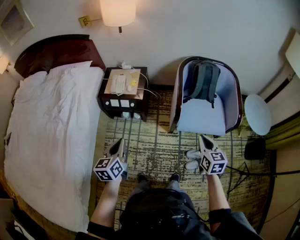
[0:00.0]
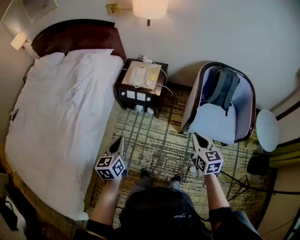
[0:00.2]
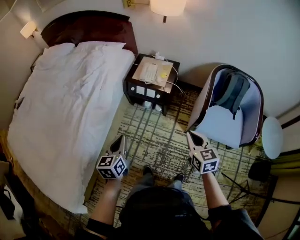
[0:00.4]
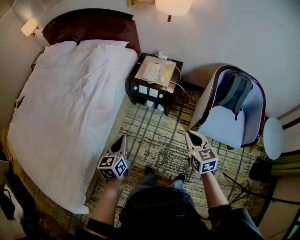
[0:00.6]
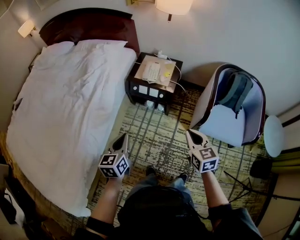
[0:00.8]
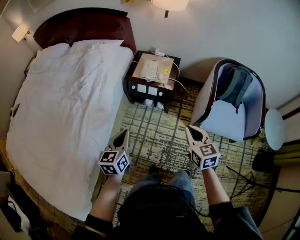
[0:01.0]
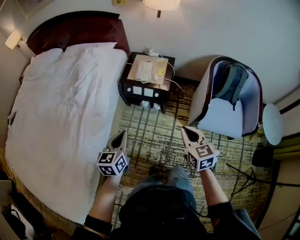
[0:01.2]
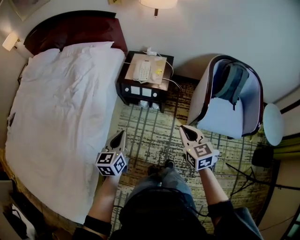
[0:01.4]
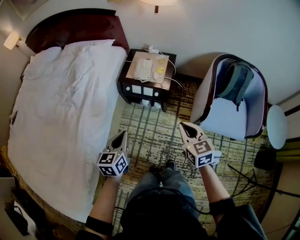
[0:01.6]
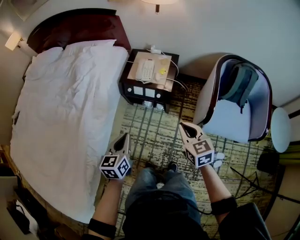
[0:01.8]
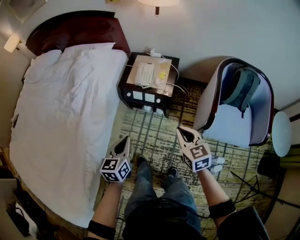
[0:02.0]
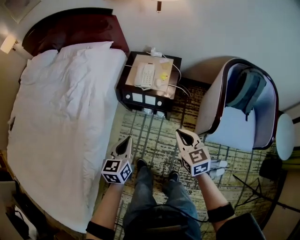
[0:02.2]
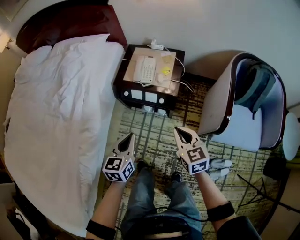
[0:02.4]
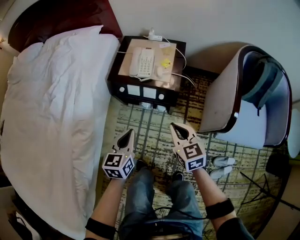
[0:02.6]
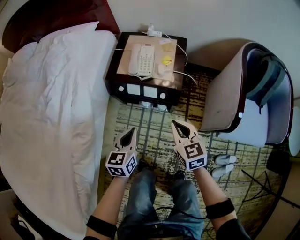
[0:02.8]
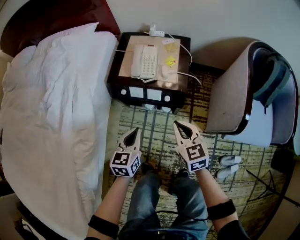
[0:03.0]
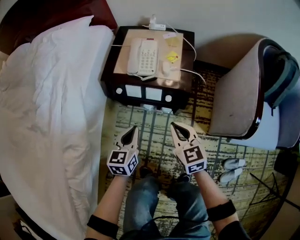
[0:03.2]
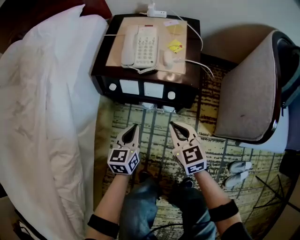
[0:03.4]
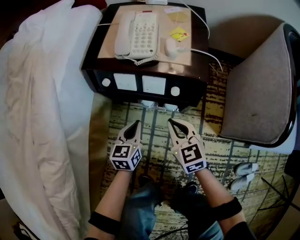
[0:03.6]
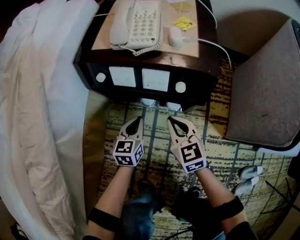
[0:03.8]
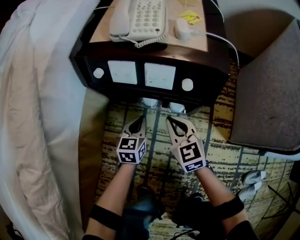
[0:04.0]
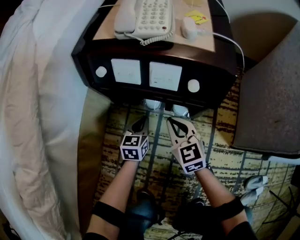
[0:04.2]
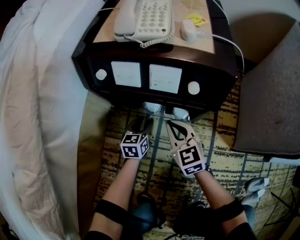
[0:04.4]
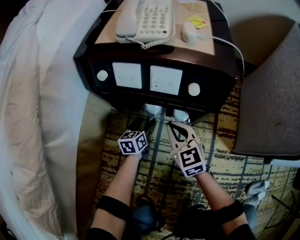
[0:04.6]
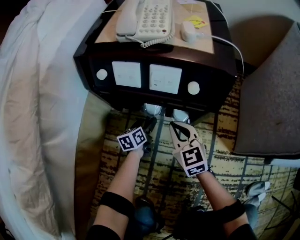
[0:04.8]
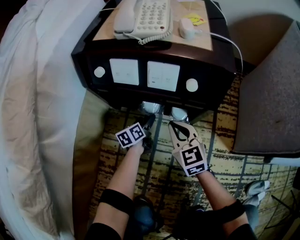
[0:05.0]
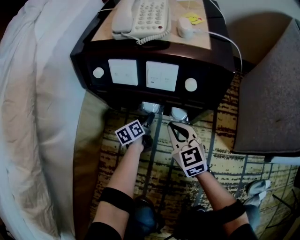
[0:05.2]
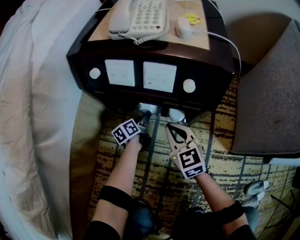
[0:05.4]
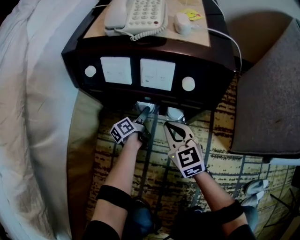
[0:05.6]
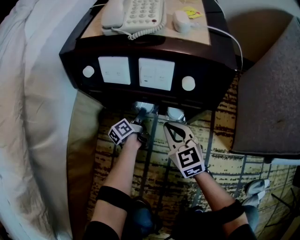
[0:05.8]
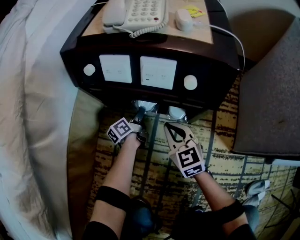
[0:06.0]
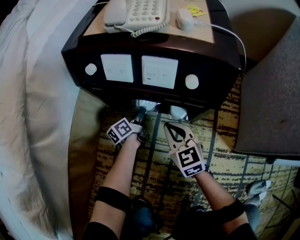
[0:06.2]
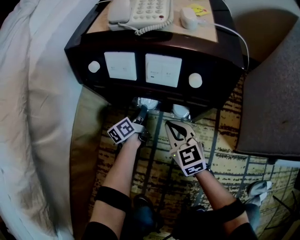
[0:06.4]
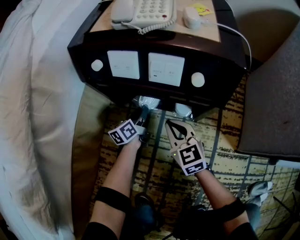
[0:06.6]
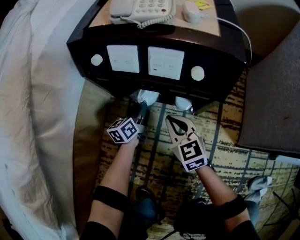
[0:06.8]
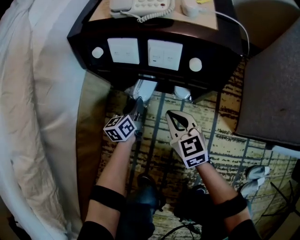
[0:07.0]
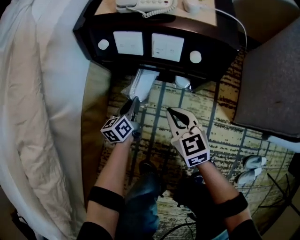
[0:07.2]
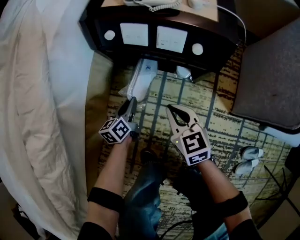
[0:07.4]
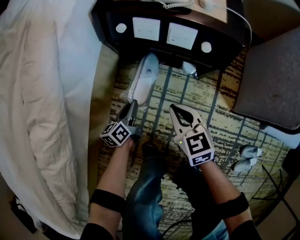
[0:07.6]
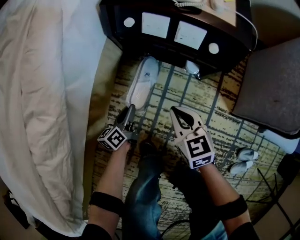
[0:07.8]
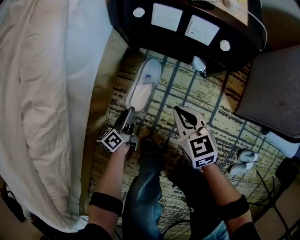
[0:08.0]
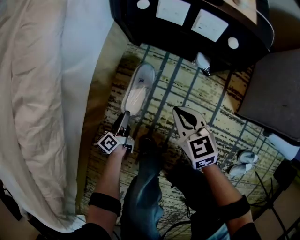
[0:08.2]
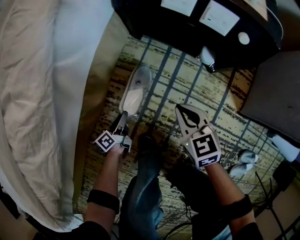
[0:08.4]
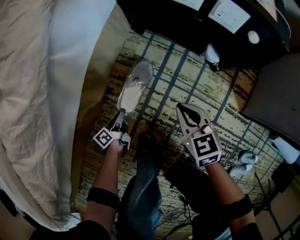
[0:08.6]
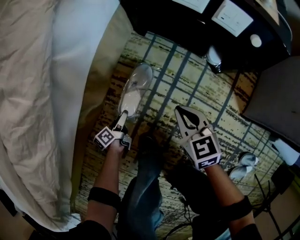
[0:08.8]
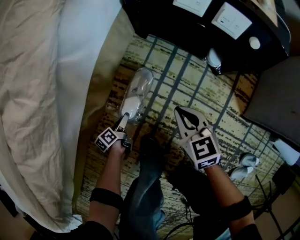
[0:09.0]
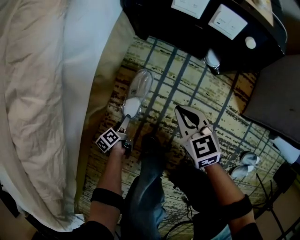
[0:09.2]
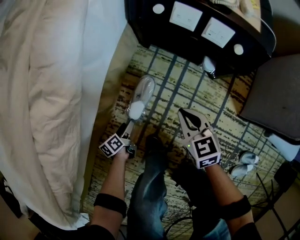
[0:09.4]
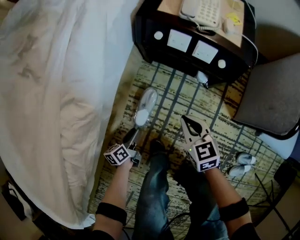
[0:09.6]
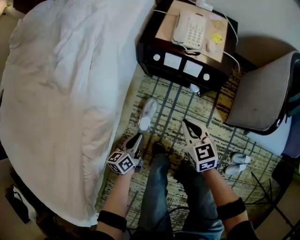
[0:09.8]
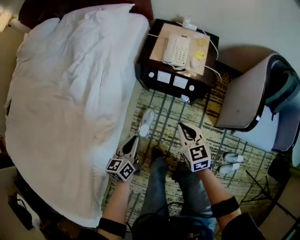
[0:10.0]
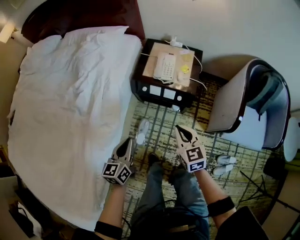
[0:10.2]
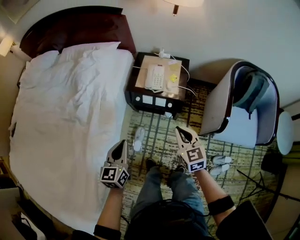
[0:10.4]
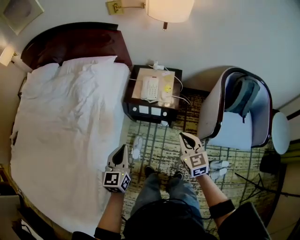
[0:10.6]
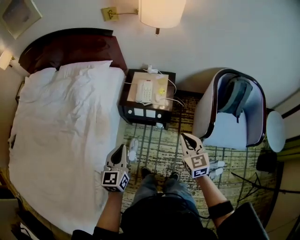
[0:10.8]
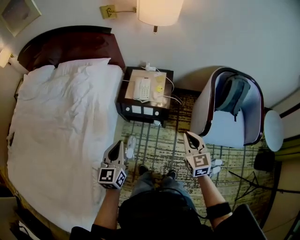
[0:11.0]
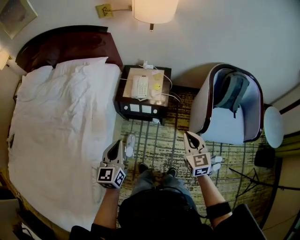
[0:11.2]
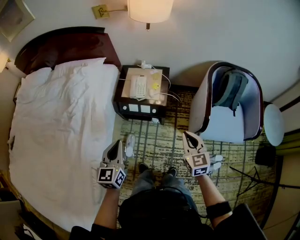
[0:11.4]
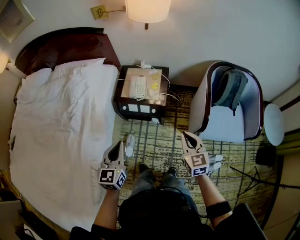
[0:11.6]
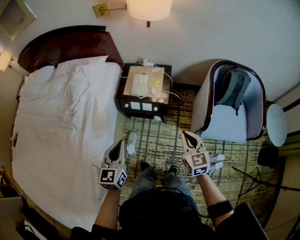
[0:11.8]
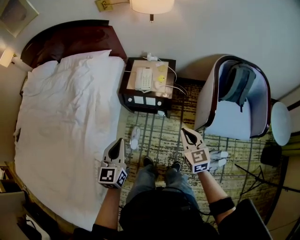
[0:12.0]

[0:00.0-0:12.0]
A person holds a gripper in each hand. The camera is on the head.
0:00.0 to 0:01.6: The right gripper travels to the left and forward by approximately 30 cm, and changes its angle by approximately 20 degrees. The left gripper heads to the left, forward and downward, covering approximately 15 cm.
0:01.6 to 0:03.0: Both grippers travel together downward and forward, about 35 cm.
0:03.0 to 0:04.4: Both grippers move downward, roughly 40 cm.
0:04.4 to 0:06.0: The left gripper moves downward and forward, approximately 10 cm, and rolls counterclockwise, seen from behind, by approximately 50 degrees.
0:06.0 to 0:07.6: The left gripper shifts some 30 cm backward, upward and to the left, and changes its angle by approximately 20 degrees. The right gripper goes roughly 20 cm upward, backward and to the left.
0:07.6 to 0:09.0: The right gripper is displaced downward and to the left by roughly 10 cm. Meanwhile the left gripper travels downward, to the left and backward by about 30 cm, turns by about 40 degrees, and opens.
0:09.0 to 0:10.4: Both grippers travel together upward, about 70 cm. The right gripper rotates some 30 degrees; the left gripper rolls clockwise, seen from behind, by roughly 60 degrees, and closes its fingers.
0:10.4 to 0:12.0: The left gripper travels upward and to the right by approximately 15 cm, while the right gripper is displaced to the right, backward and upward by about 15 cm.

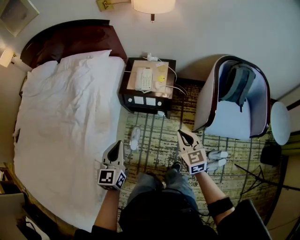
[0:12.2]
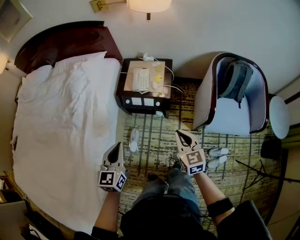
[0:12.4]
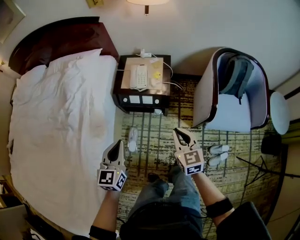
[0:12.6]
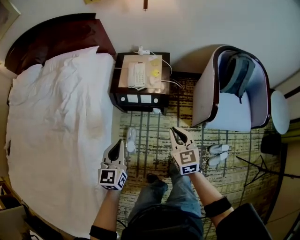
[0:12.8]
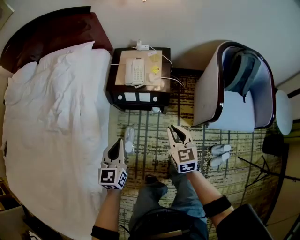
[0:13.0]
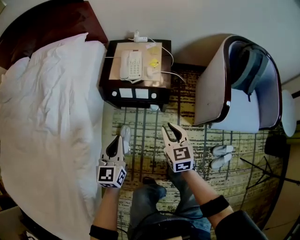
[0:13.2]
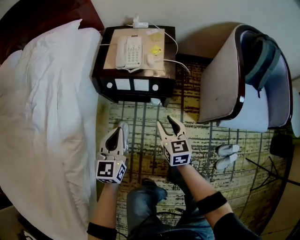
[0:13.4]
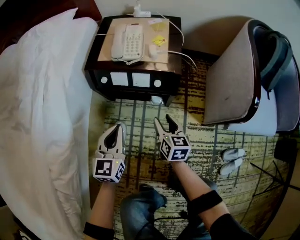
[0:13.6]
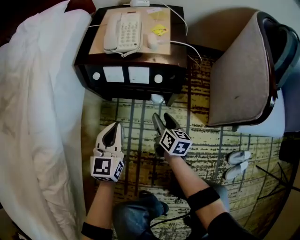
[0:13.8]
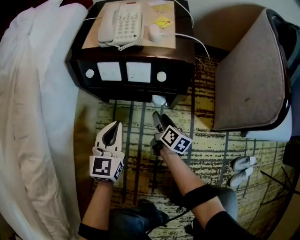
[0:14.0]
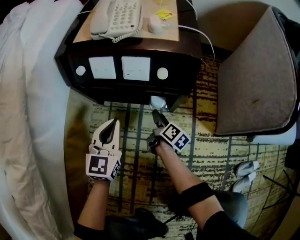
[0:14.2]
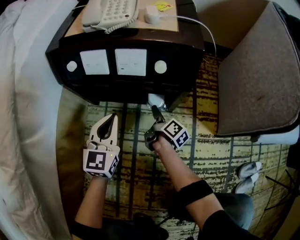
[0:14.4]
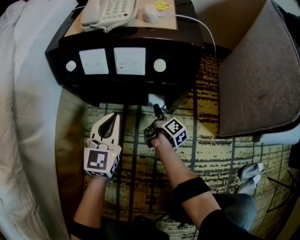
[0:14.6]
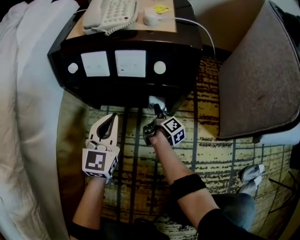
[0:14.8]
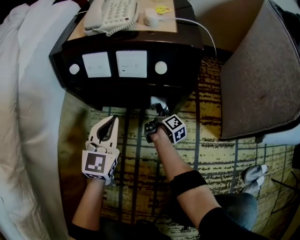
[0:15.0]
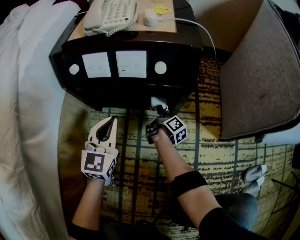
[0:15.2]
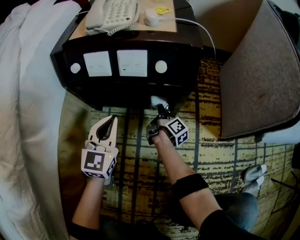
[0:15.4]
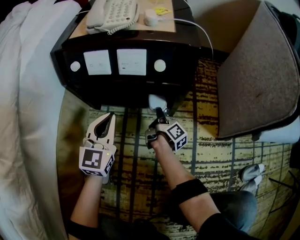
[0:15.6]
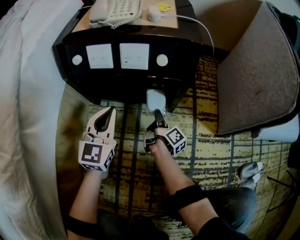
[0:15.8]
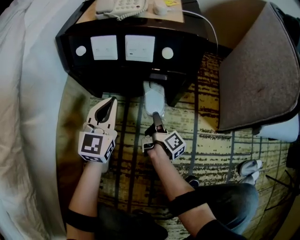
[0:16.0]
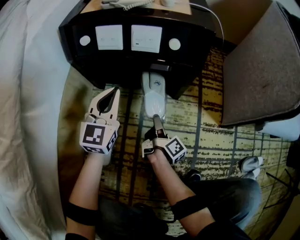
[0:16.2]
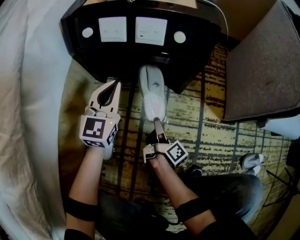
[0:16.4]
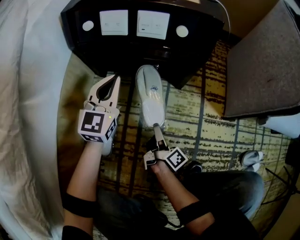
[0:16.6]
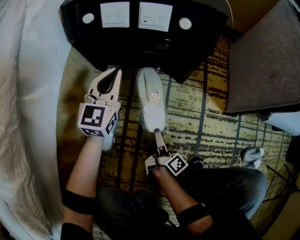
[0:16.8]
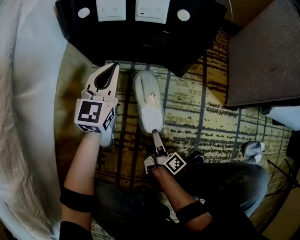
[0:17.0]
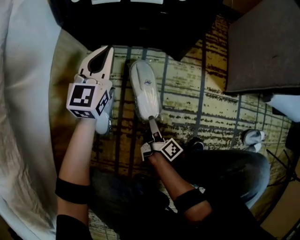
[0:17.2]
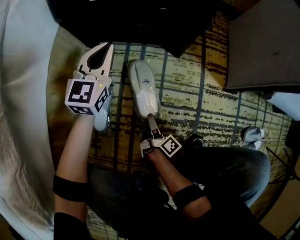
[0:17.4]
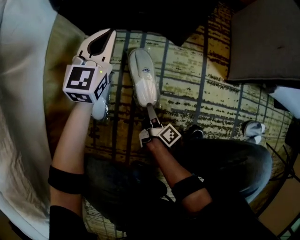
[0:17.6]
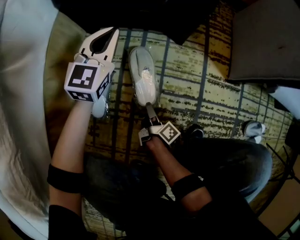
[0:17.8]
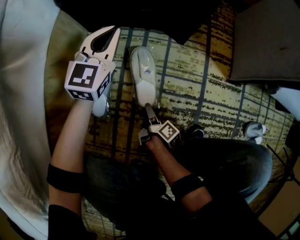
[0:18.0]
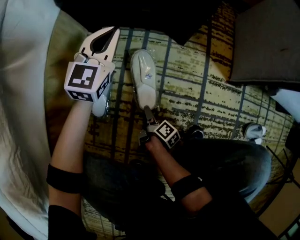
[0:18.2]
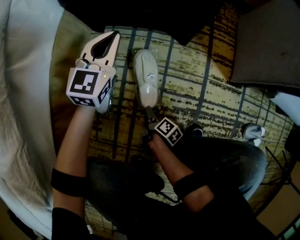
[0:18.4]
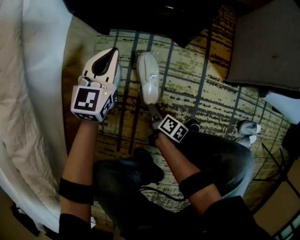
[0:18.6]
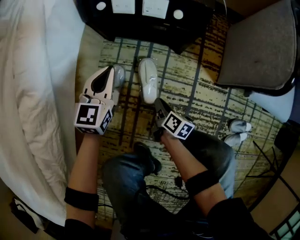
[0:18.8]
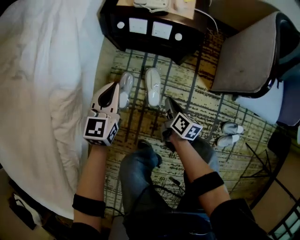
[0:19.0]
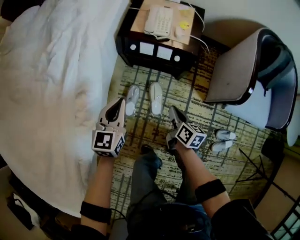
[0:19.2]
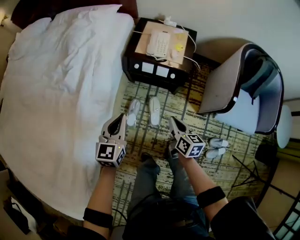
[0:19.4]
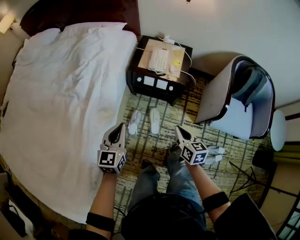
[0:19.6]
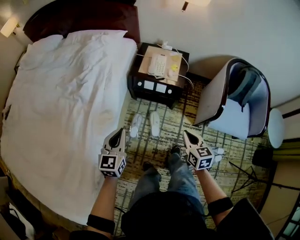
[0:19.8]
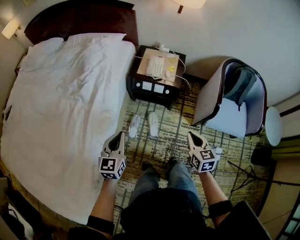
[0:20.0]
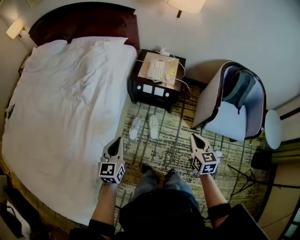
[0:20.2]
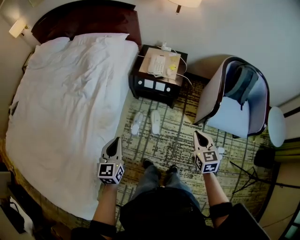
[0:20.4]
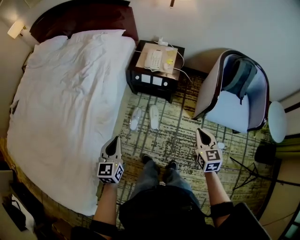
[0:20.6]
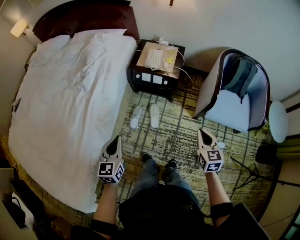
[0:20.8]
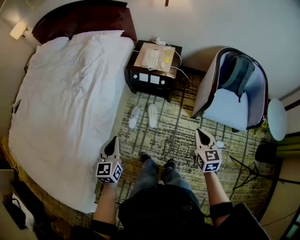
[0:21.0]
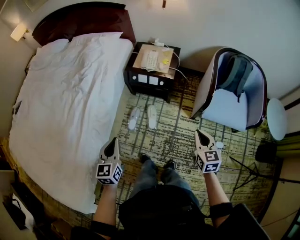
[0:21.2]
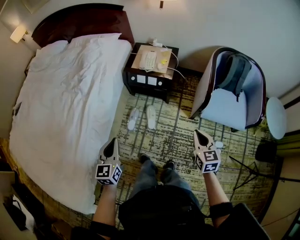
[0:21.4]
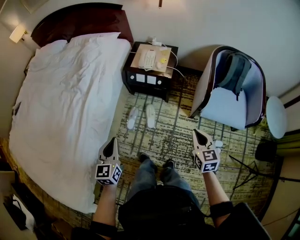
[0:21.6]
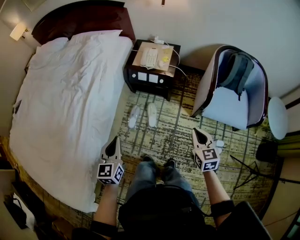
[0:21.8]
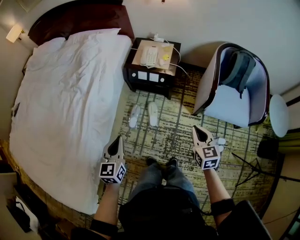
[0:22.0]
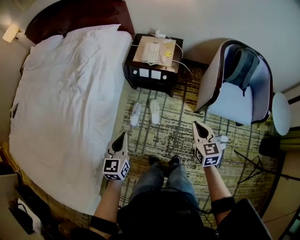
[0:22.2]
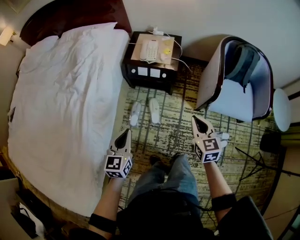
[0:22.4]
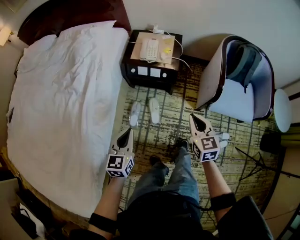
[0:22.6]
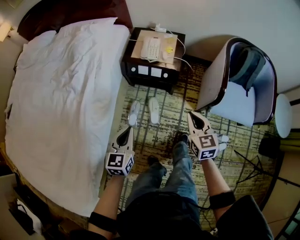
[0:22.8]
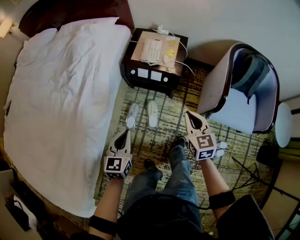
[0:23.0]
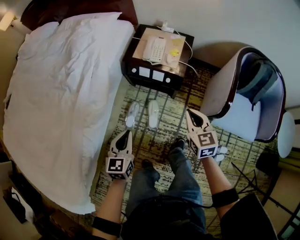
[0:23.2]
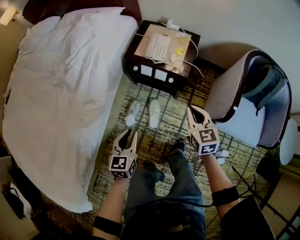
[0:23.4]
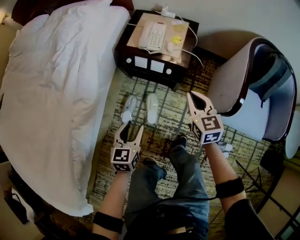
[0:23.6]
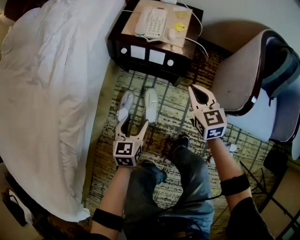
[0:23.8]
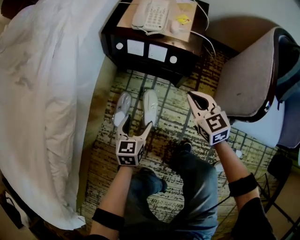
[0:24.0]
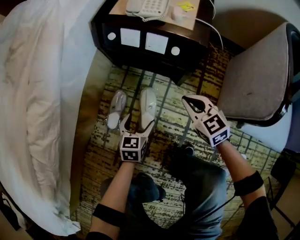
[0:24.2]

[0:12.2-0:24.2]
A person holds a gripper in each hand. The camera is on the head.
0:12.2 to 0:13.8: The two grippers go approximately 60 cm downward. The right gripper rolls clockwise, seen from behind, by about 40 degrees, and opens its fingers.
0:13.8 to 0:15.2: The right gripper is displaced downward and forward by some 30 cm, and rolls clockwise, seen from behind, by about 50 degrees; the left gripper travels downward and forward by approximately 20 cm.
0:15.2 to 0:16.6: The right gripper shifts roughly 25 cm backward.
0:16.6 to 0:18.2: The right gripper heads backward and downward, covering approximately 20 cm, rotates some 30 degrees, and opens.
0:18.2 to 0:19.8: The right gripper goes some 90 cm upward, rotates around the line of its fingers by some 80 degrees, counterclockwise from behind, and closes. Meanwhile the left gripper moves upward and backward, approximately 70 cm, and changes its angle by roughly 30 degrees.
0:19.8 to 0:21.2: The left gripper is displaced backward and to the right by approximately 20 cm. Meanwhile the right gripper goes roughly 20 cm to the right and backward.
0:21.2 to 0:22.6: The left gripper shifts roughly 15 cm forward and downward. The right gripper travels forward and to the left by roughly 15 cm.
0:22.6 to 0:24.2: The left gripper heads downward, covering approximately 60 cm, and opens up. The right gripper is displaced downward and forward by roughly 50 cm, and rotates roughly 30 degrees.
